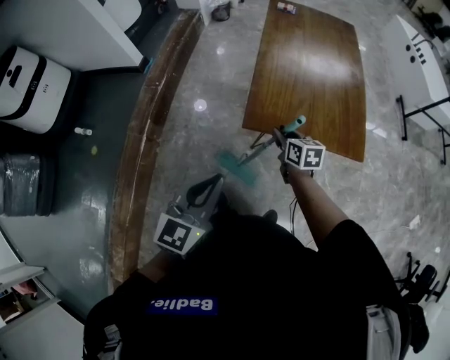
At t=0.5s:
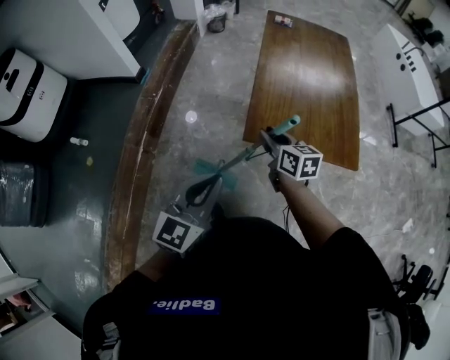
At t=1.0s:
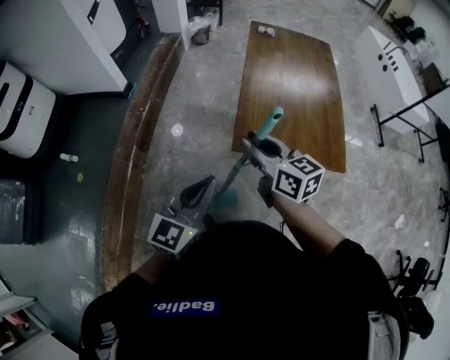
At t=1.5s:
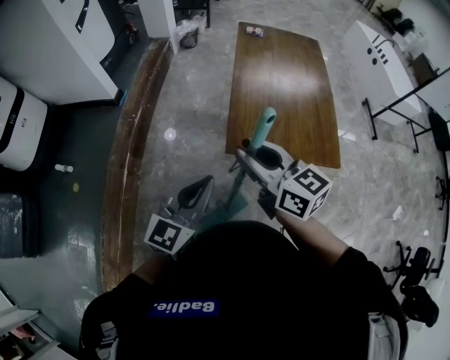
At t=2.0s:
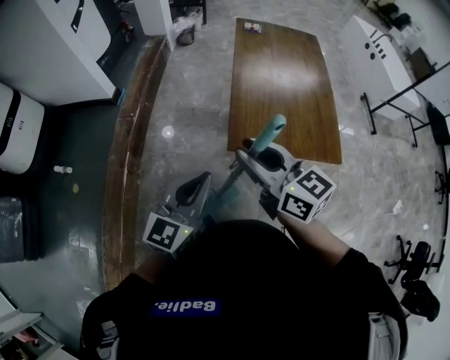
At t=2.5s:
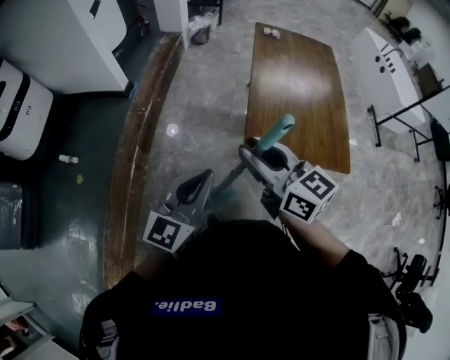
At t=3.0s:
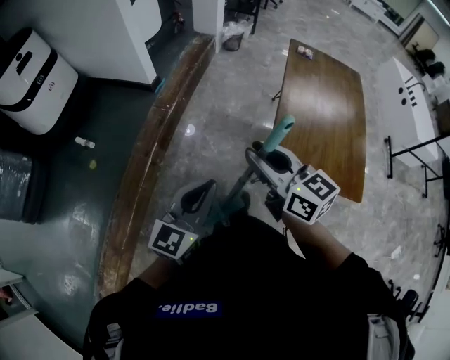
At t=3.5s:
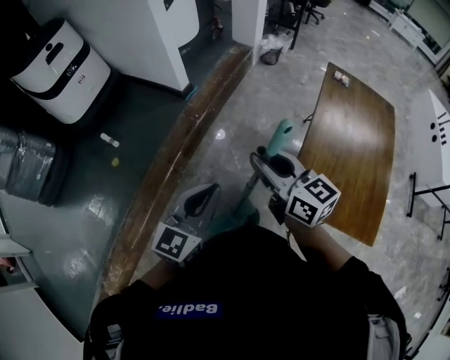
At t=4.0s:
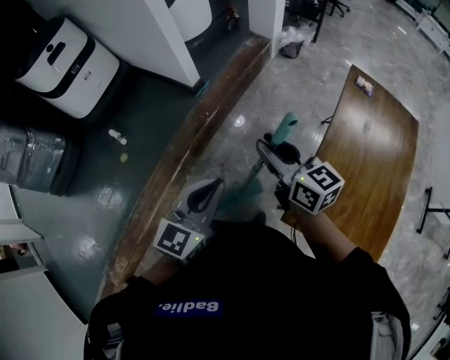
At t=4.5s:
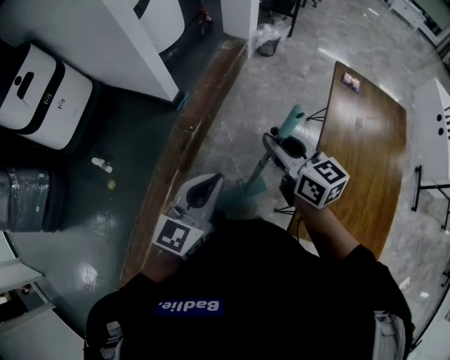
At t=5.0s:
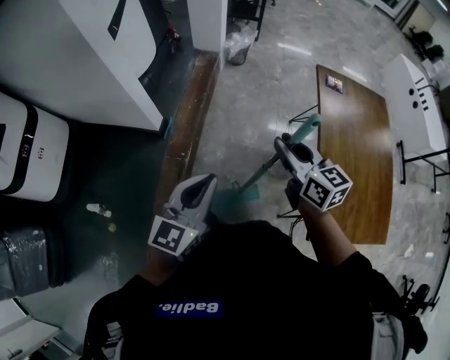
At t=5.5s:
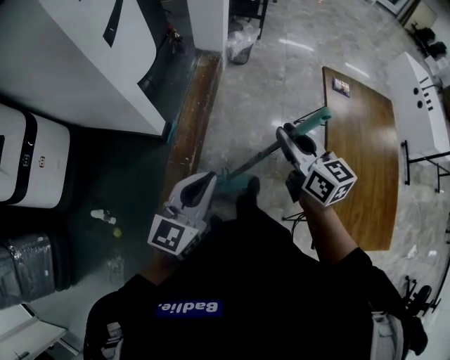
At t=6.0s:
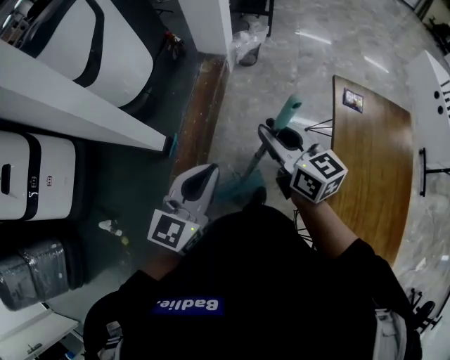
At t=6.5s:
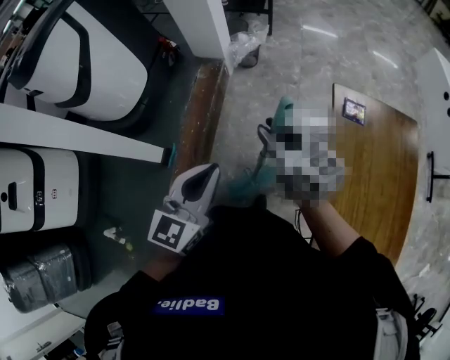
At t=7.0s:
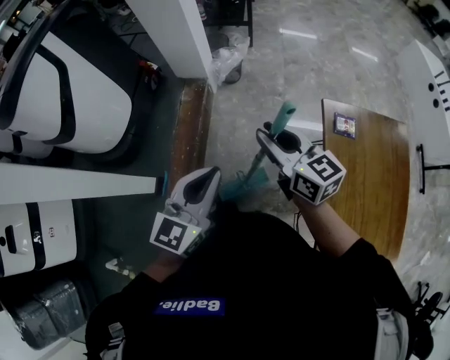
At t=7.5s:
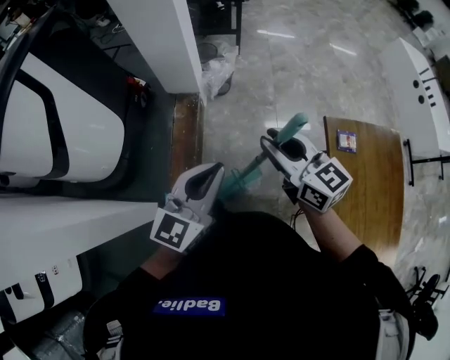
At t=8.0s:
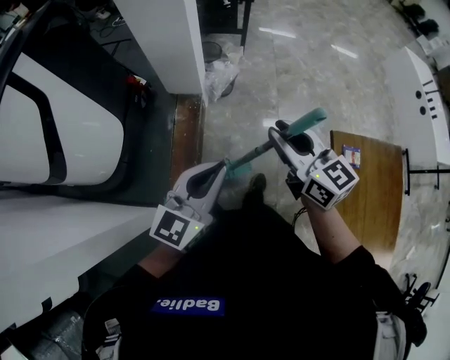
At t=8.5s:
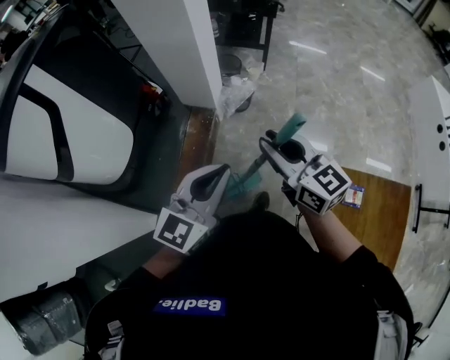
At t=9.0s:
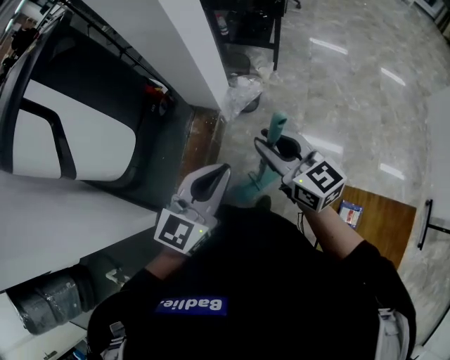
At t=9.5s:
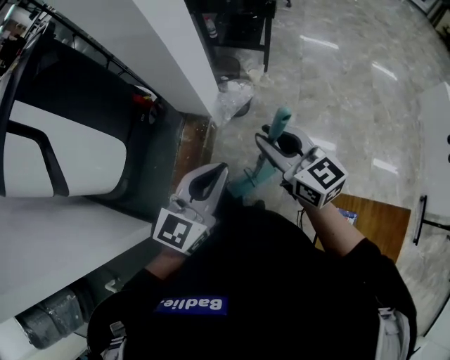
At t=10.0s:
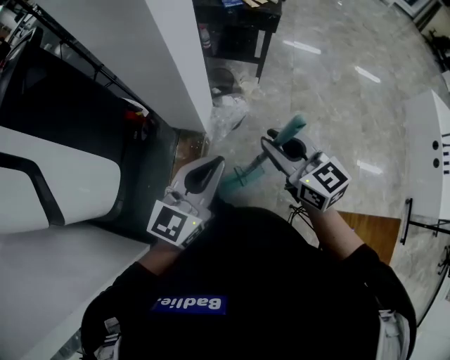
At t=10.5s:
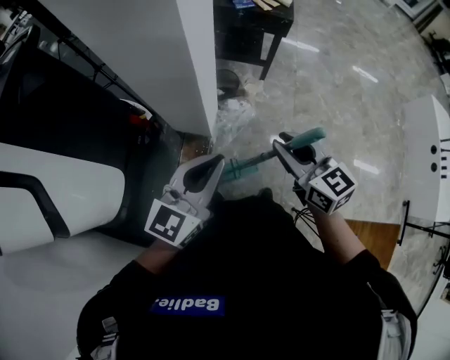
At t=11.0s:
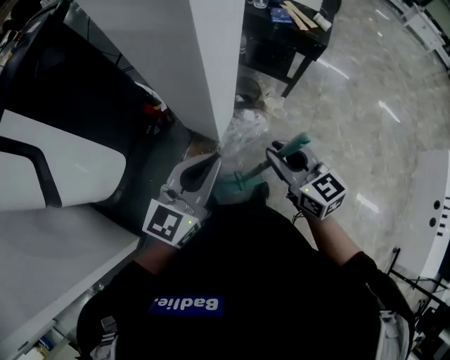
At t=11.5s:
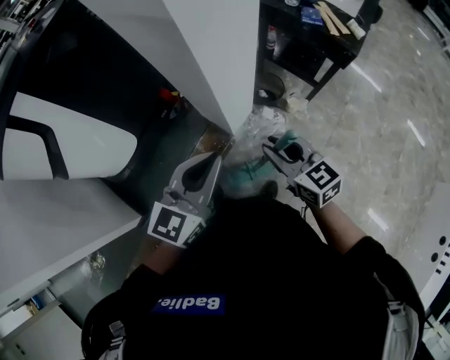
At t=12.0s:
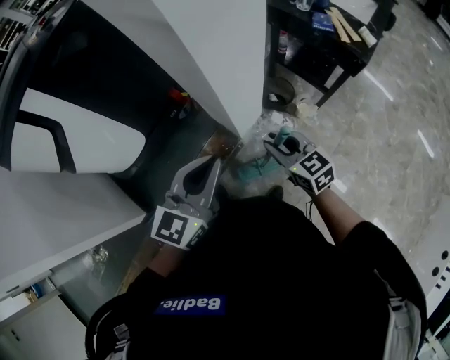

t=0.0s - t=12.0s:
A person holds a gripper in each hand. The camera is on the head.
t=0.0s - t=2.0s: The right gripper moves upward and to the left, some 30 cm, and changes its angle by roughly 30 degrees. Meanwhile the left gripper shifts roughly 5 cm forward.
t=2.0s - t=4.0s: The left gripper travels forward and to the left by some 25 cm, and changes its angle by roughly 30 degrees; the right gripper shifts approximately 30 cm forward, and changes its angle by some 20 degrees.
t=4.0s - t=6.0s: Both grippers travel together forward, roughly 40 cm. The right gripper changes its angle by approximately 20 degrees.
t=6.0s - t=8.0s: The grippers both shift forward by about 35 cm.
t=8.0s - t=10.0s: The two grippers go roughly 30 cm forward.
t=10.0s - t=12.0s: The left gripper shifts by roughly 15 cm, and turns by roughly 30 degrees. The right gripper ends up roughly 25 cm from where it was, and turns by approximately 40 degrees.

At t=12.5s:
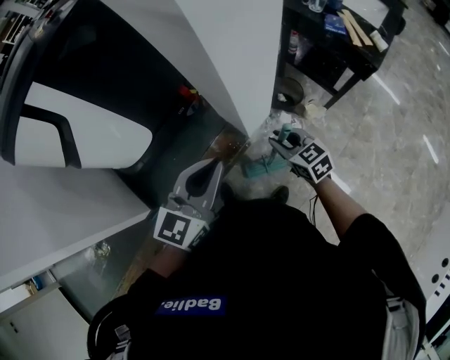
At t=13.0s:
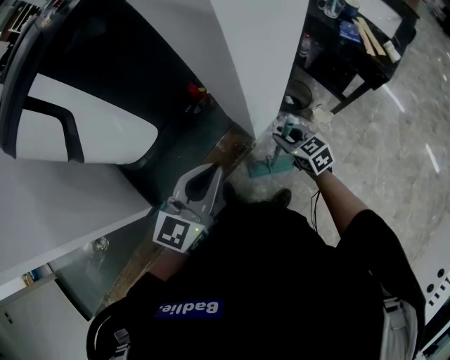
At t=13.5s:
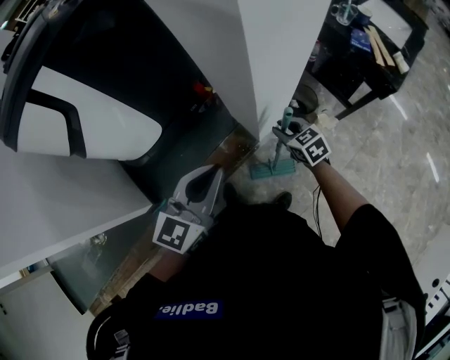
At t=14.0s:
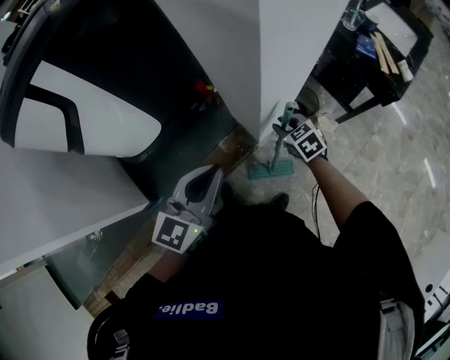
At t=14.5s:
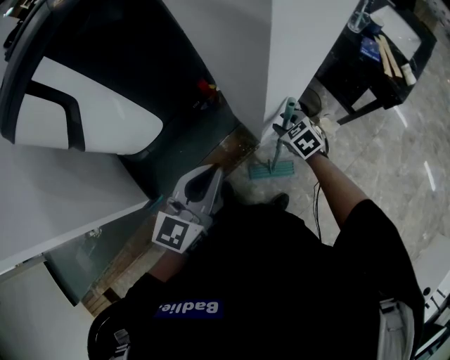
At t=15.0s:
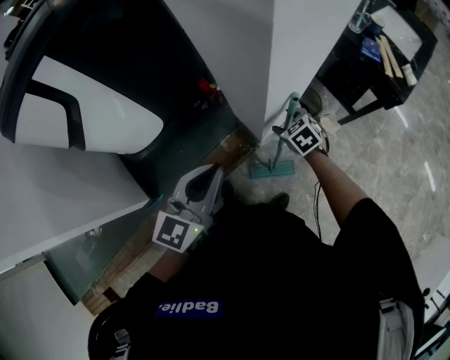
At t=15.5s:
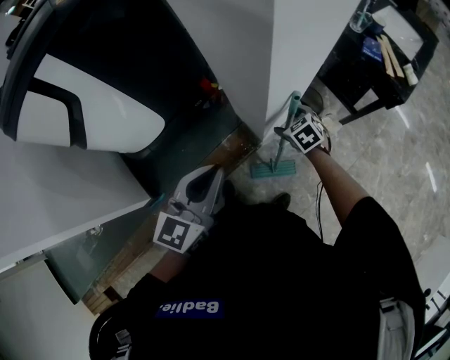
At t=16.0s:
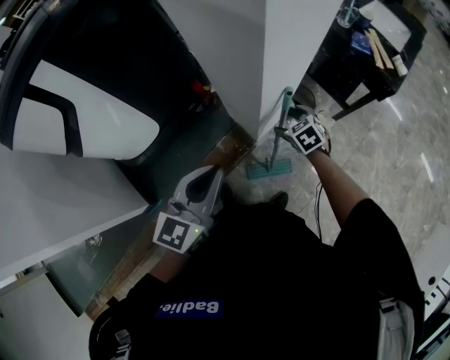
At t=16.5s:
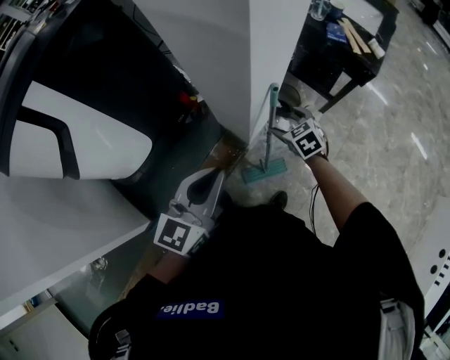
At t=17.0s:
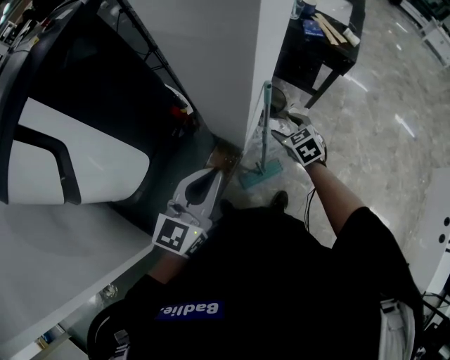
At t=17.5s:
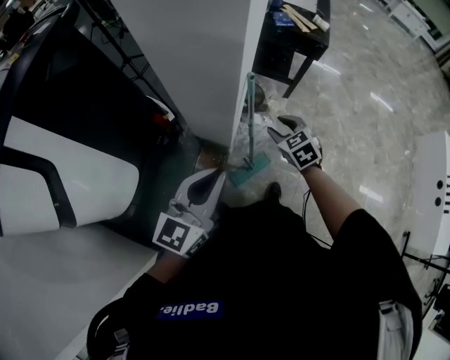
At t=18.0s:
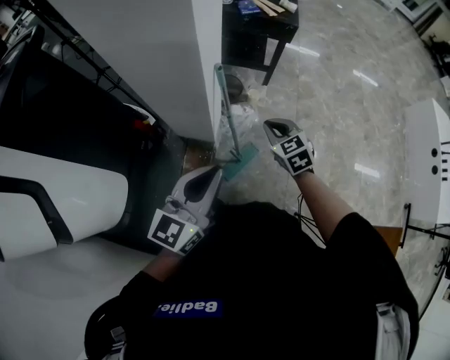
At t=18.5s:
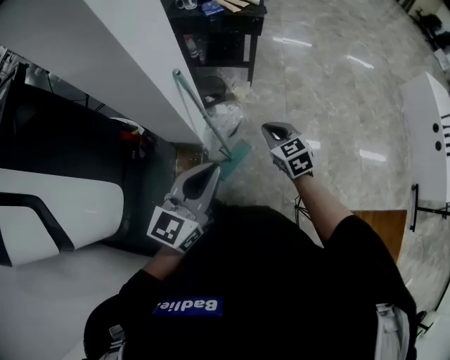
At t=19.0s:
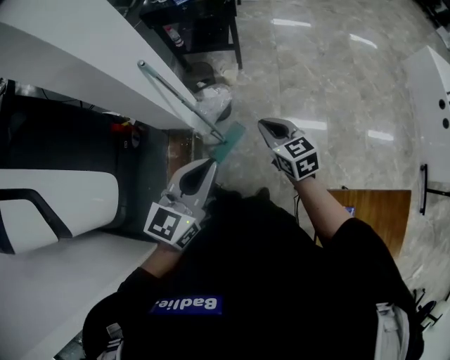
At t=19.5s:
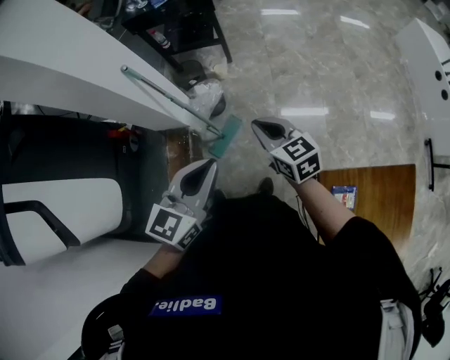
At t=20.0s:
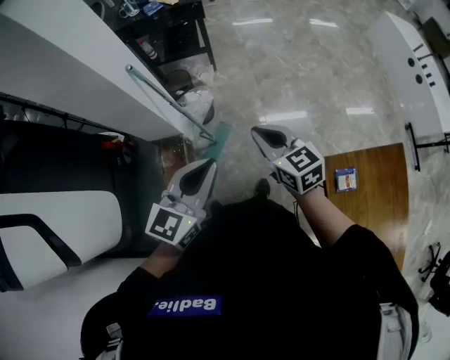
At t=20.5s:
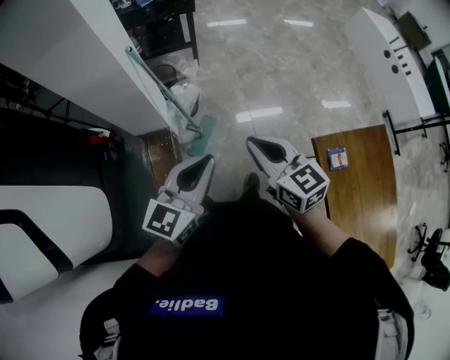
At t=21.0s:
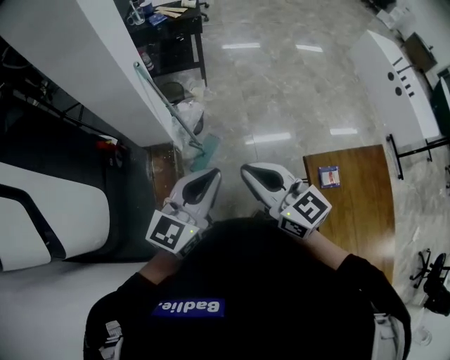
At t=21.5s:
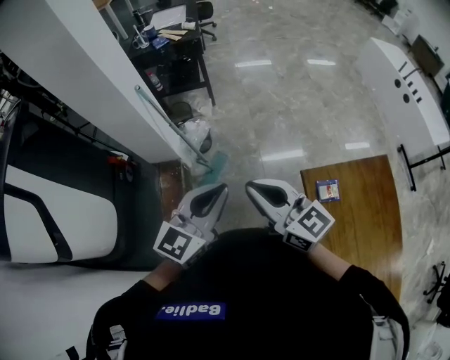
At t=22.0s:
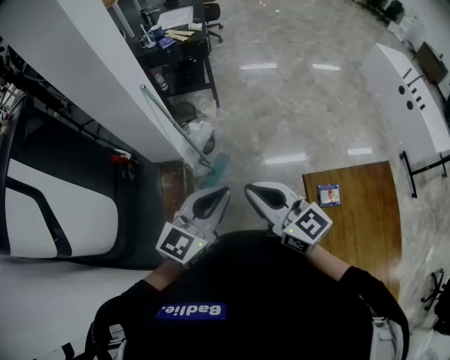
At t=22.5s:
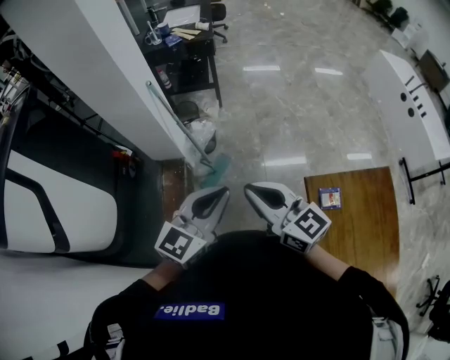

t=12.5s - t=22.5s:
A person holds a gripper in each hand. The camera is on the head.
t=12.5s - t=14.5s: The right gripper travels forward and downward by about 15 cm, and changes its angle by some 20 degrees, while the left gripper heads to the left, covering about 5 cm.
t=14.5s - t=16.5s: The right gripper heads to the right, covering about 5 cm, and opens up.
t=16.5s - t=18.5s: The left gripper changes place by approximately 15 cm, and swivels approximately 30 degrees, while the right gripper changes place by approximately 25 cm, rotates approximately 40 degrees, and closes up.
t=18.5s - t=20.5s: The left gripper shifts roughly 15 cm backward, and travels to the right and back again, roughly 15 cm each way, while the right gripper is displaced backward and upward by some 30 cm, and changes its angle by about 30 degrees.
t=20.5s - t=22.5s: The right gripper travels backward, upward and to the right by roughly 15 cm, and swivels roughly 20 degrees; the left gripper travels to the right, backward and upward by some 15 cm.

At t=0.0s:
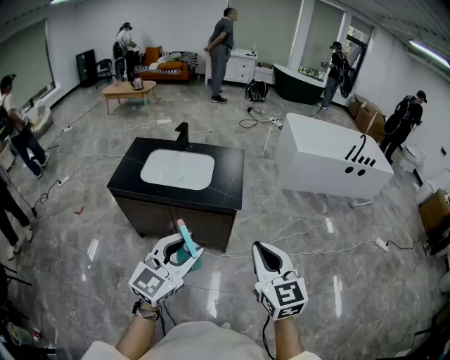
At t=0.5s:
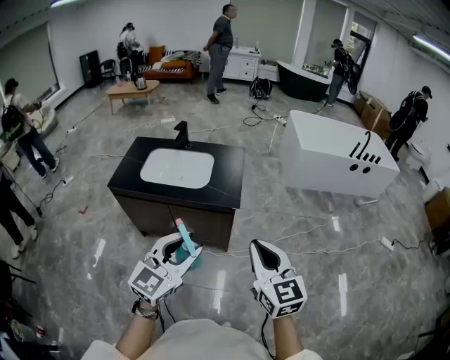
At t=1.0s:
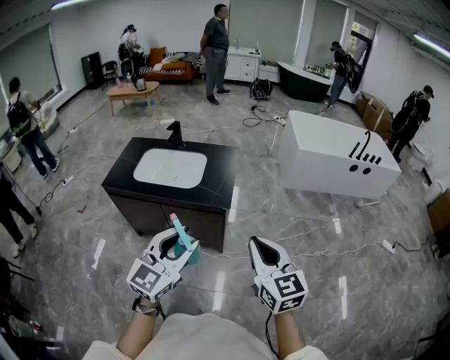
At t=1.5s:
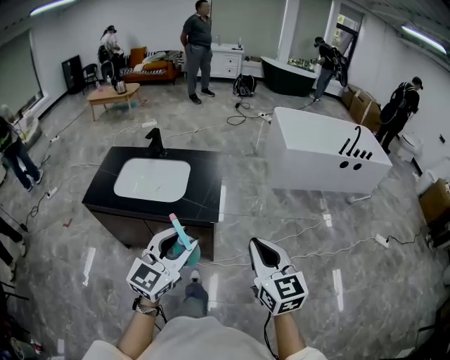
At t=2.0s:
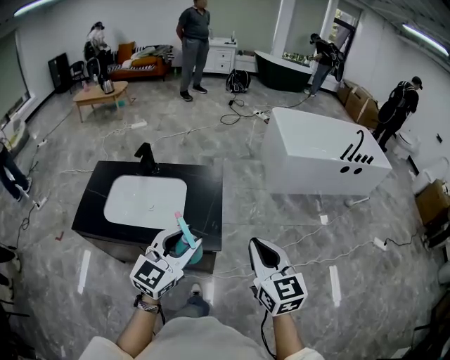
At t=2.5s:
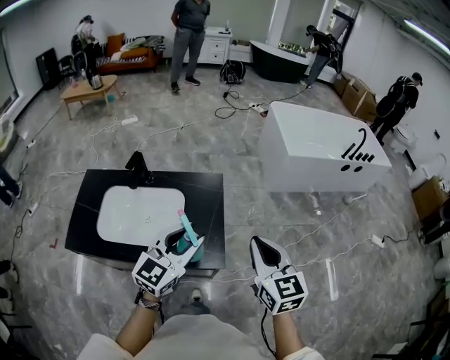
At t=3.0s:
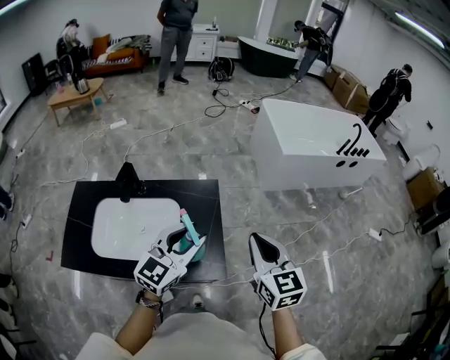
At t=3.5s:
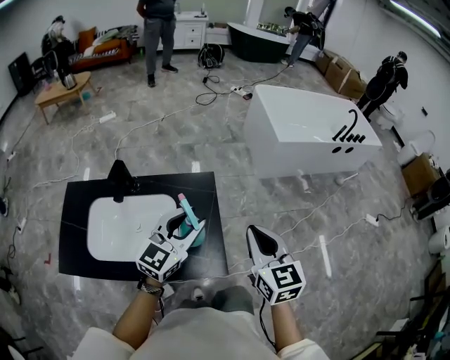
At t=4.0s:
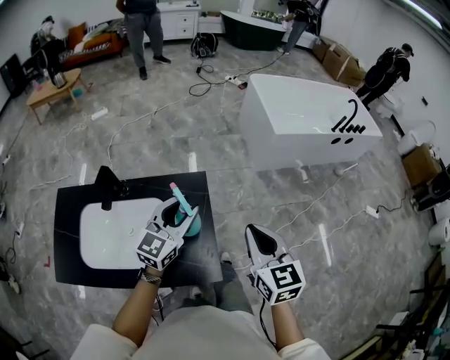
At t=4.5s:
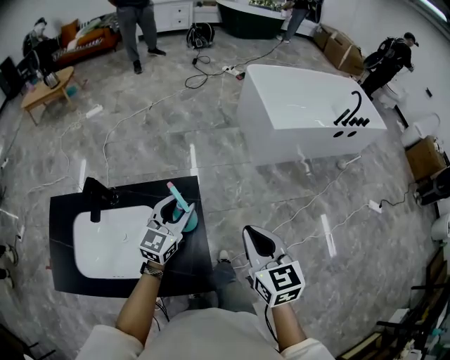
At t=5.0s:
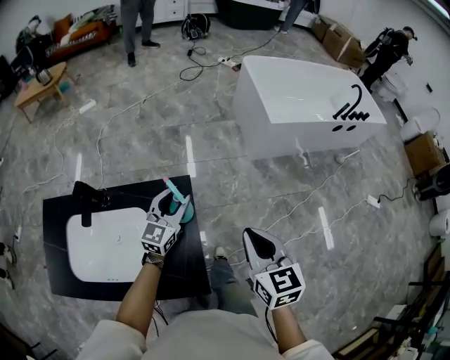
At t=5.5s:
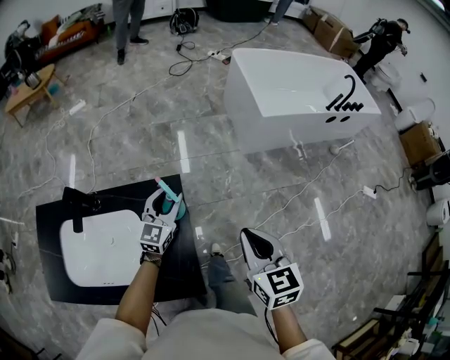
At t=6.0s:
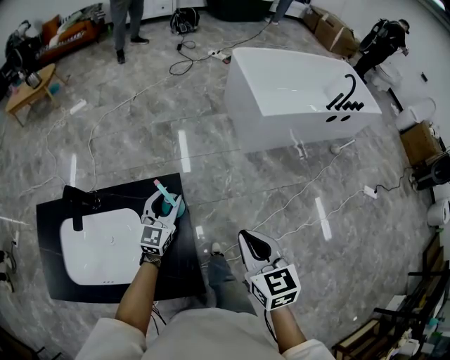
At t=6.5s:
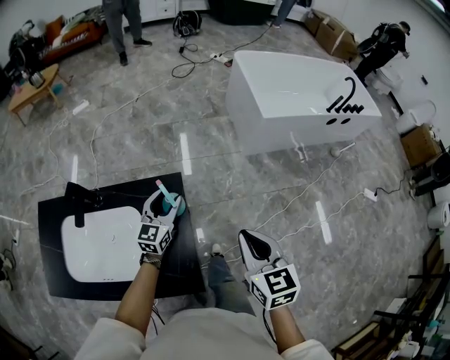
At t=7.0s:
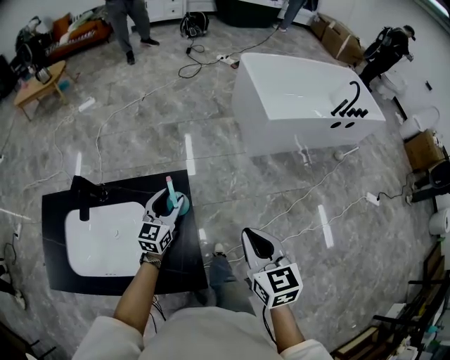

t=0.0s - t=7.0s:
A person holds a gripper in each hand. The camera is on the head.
t=0.0s - t=2.0s: Both grippers move forward, about 30 cm.
t=2.0s - t=3.5s: The right gripper is displaced forward and to the left by about 20 cm. The left gripper is displaced forward by approximately 25 cm.
t=3.5s - t=5.0s: The right gripper heads forward, to the right and downward, covering about 15 cm; the left gripper moves forward and downward, roughly 25 cm.
t=5.0s - t=7.0s: The grippers move only a little.
